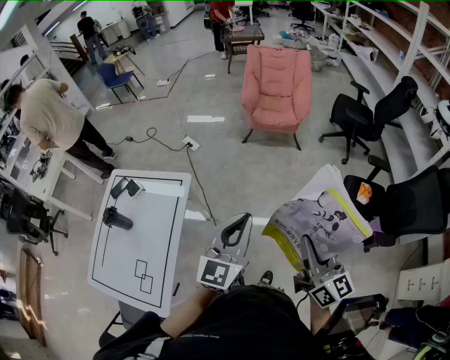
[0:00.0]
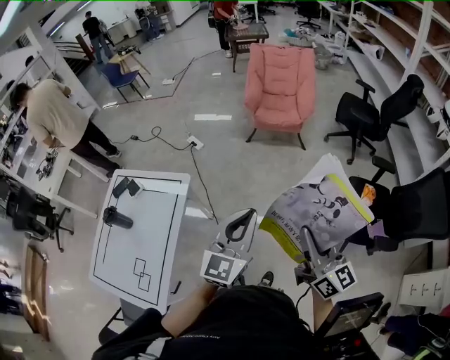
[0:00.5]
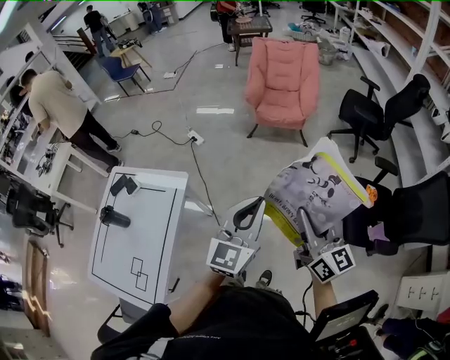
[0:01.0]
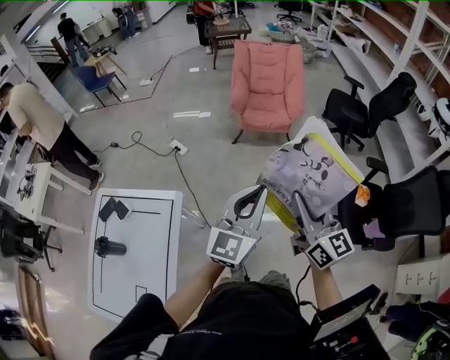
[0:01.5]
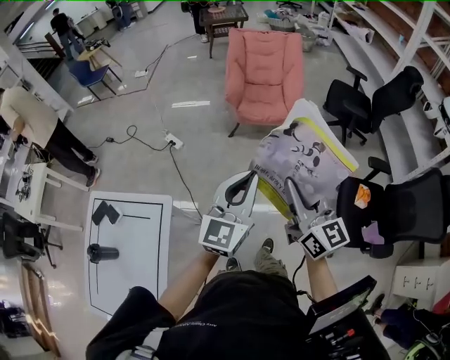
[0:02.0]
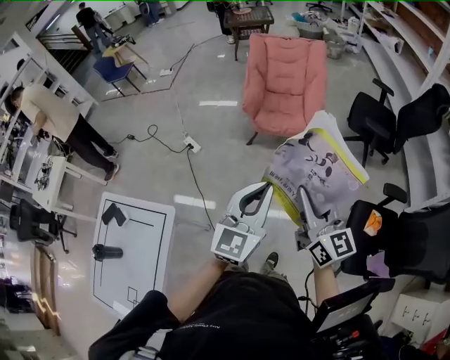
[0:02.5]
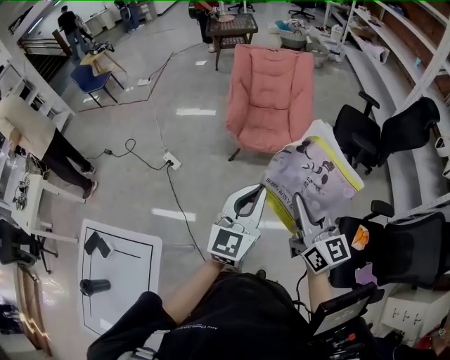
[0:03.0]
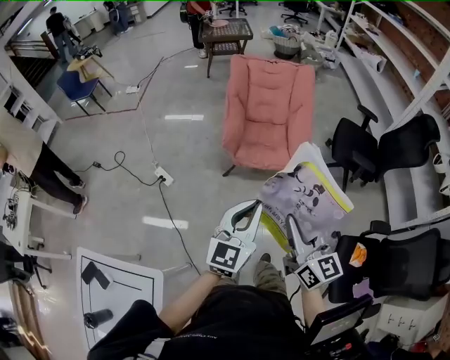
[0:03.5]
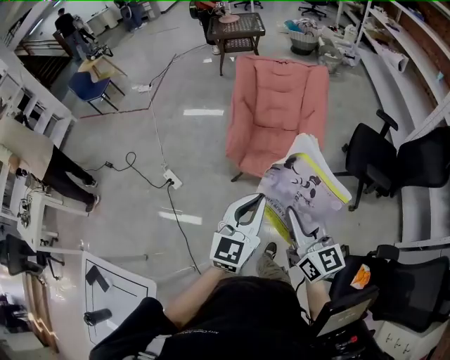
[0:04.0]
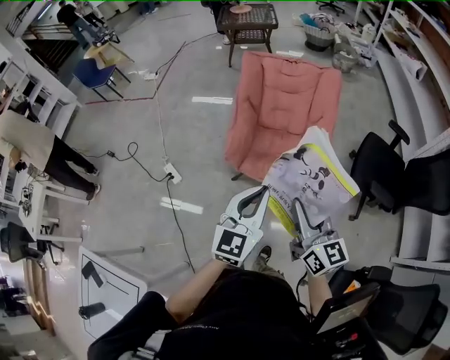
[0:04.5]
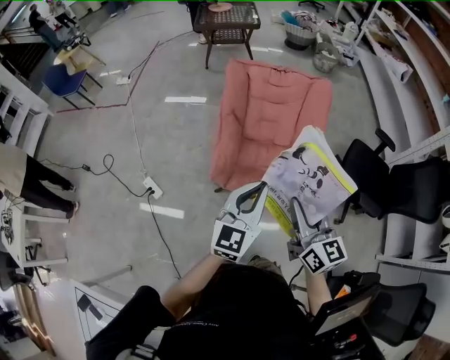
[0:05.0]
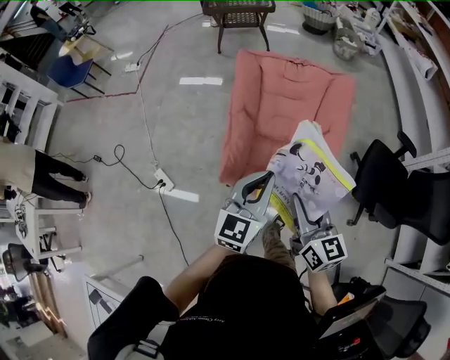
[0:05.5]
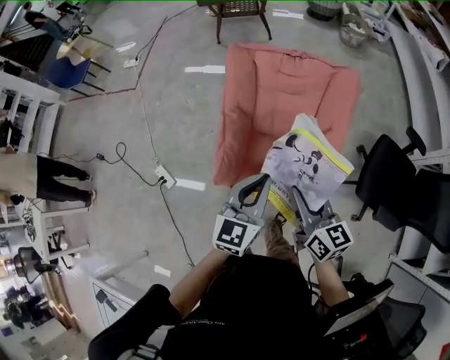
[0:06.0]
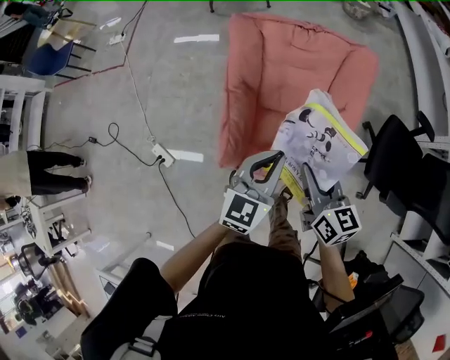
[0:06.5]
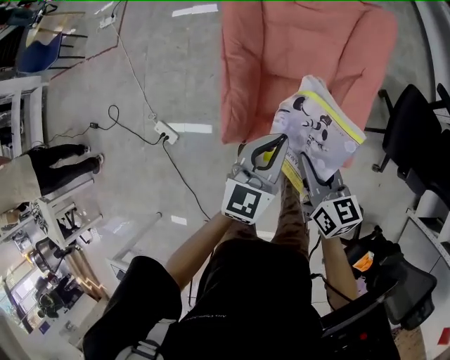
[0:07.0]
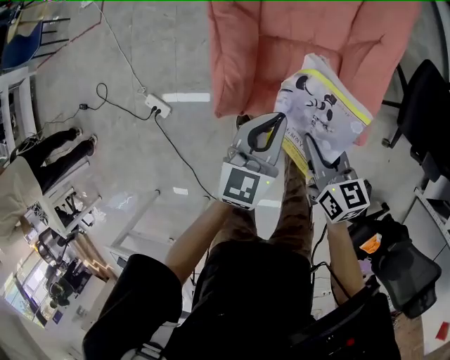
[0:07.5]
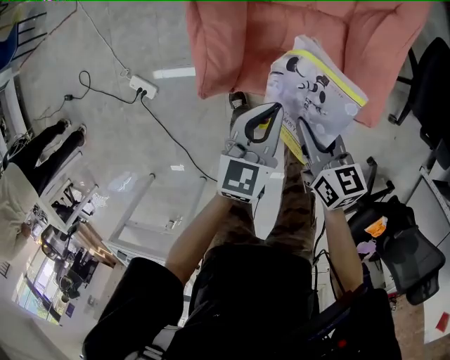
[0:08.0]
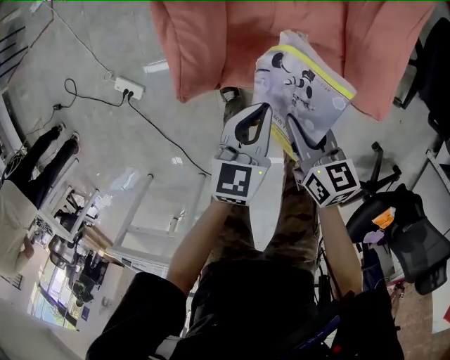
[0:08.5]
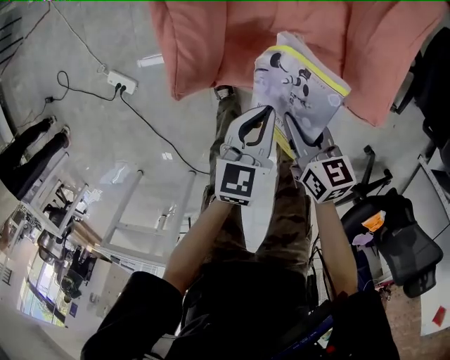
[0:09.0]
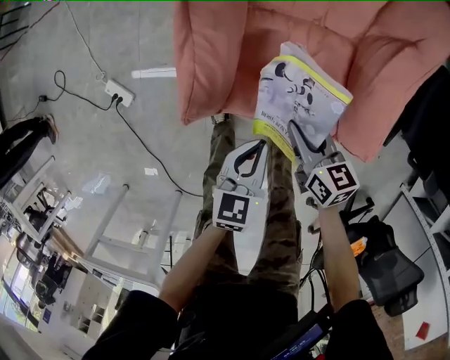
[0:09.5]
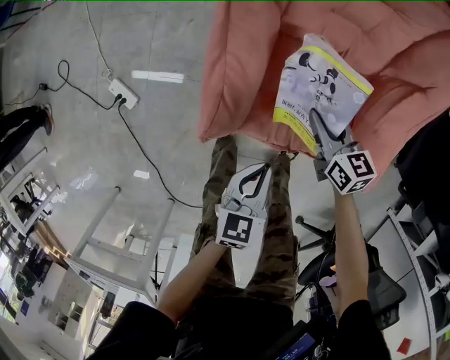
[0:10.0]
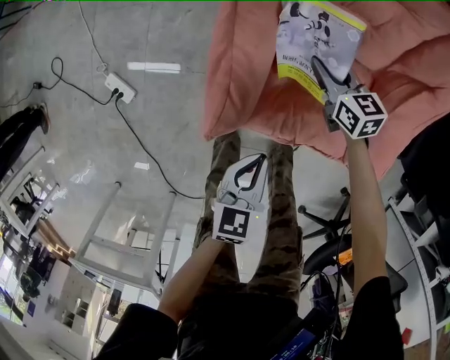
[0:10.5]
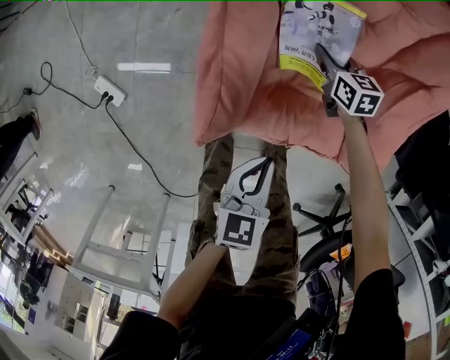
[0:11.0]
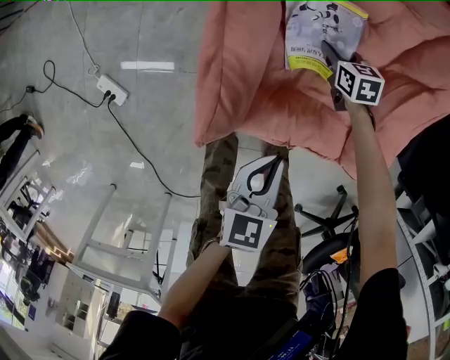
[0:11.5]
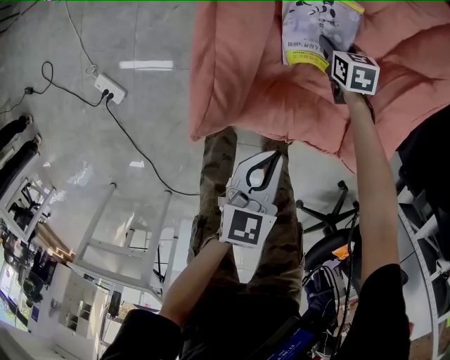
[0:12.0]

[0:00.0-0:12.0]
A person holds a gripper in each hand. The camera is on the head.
0:00.0 to 0:02.0: The two grippers go approximately 30 cm forward.
0:02.0 to 0:04.0: The pair of grippers is taken forward, approximately 40 cm.
0:04.0 to 0:06.0: The two grippers travel together, forward, some 40 cm.
0:06.0 to 0:08.0: Both grippers travel together downward, approximately 30 cm. The left gripper turns by some 20 degrees, while the right gripper rotates about 20 degrees.
0:08.0 to 0:10.0: The right gripper moves forward and downward, approximately 20 cm. Meanwhile the left gripper moves downward and to the left, some 15 cm.
0:10.0 to 0:12.0: The right gripper shifts some 20 cm forward and downward, swivels about 30 degrees, and opens up.

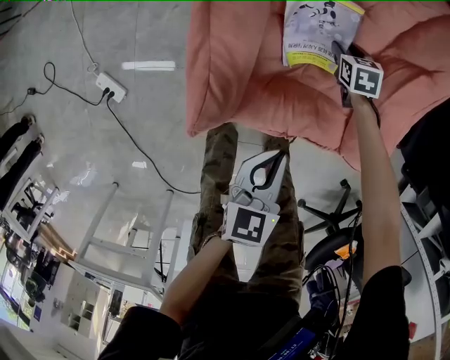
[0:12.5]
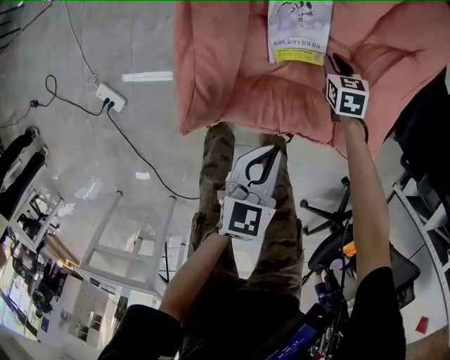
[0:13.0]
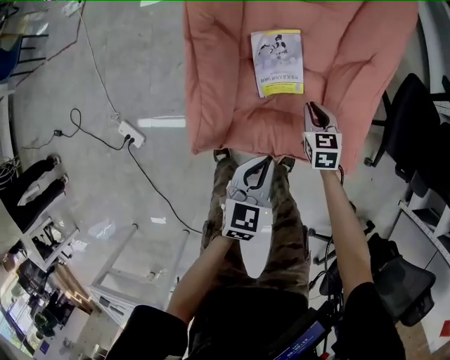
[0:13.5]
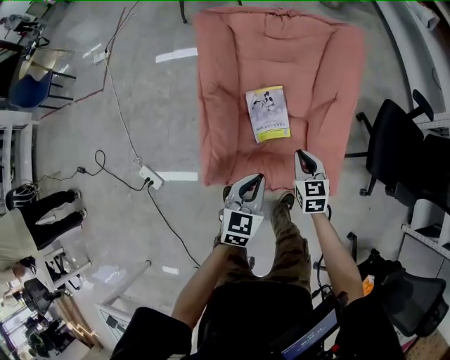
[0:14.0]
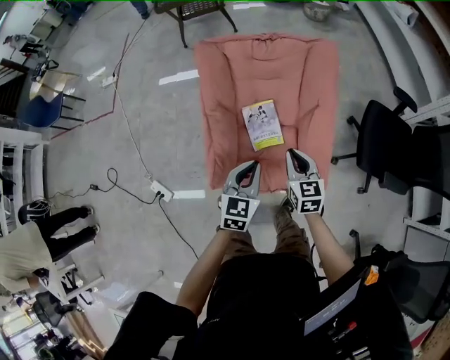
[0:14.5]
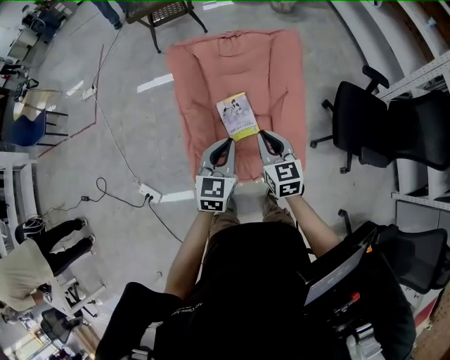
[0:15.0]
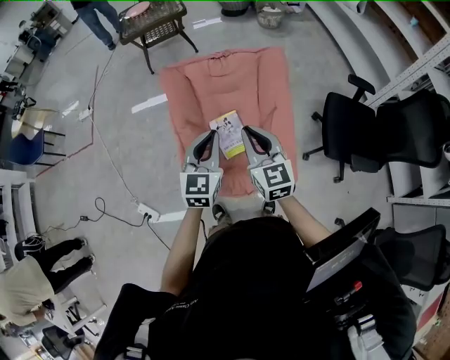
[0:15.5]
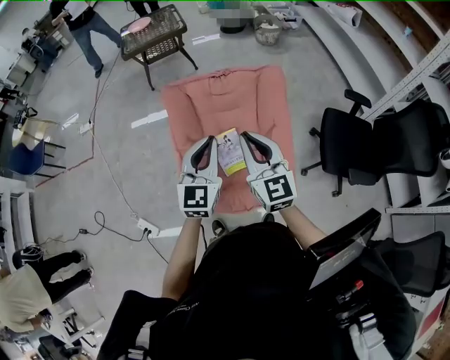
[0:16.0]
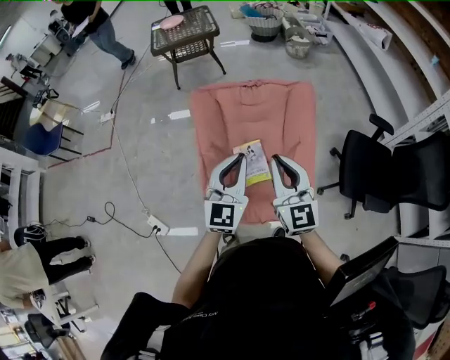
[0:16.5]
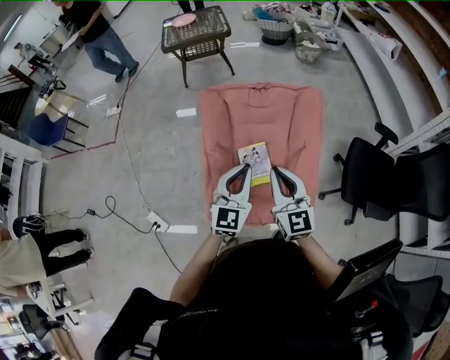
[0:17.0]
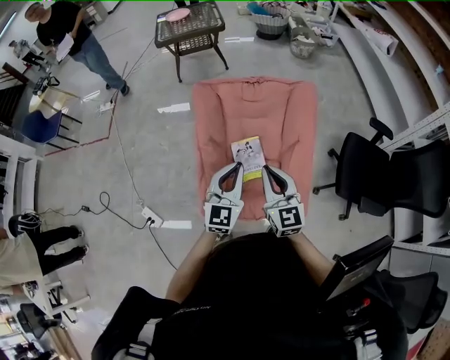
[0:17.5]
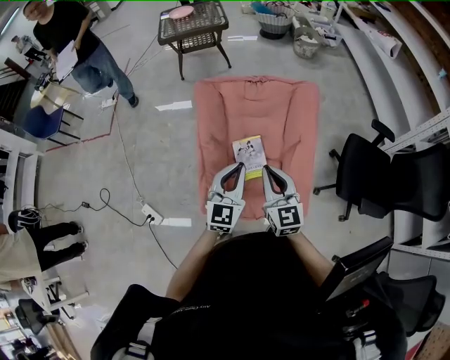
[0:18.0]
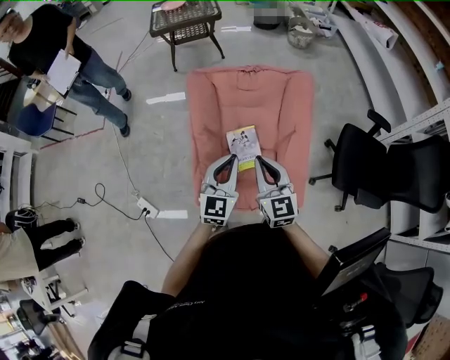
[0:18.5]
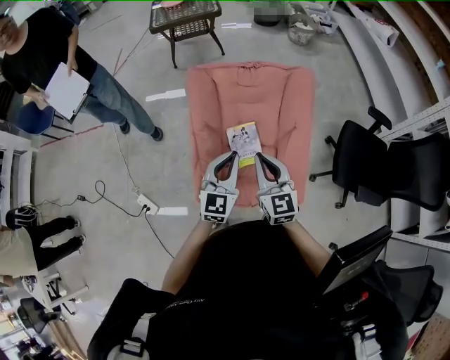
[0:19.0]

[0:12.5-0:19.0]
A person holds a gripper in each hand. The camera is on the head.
0:12.5 to 0:14.5: The right gripper heads upward and backward, covering about 50 cm, points its fingers approximately 30 degrees further upward, and closes its fingers, while the left gripper is displaced upward by approximately 30 cm, and rotates some 30 degrees.
0:14.5 to 0:17.0: The right gripper goes approximately 20 cm upward, and turns by some 30 degrees. The left gripper travels upward and forward by about 15 cm, and turns by approximately 20 degrees.
0:17.0 to 0:19.0: The grippers move only a little.

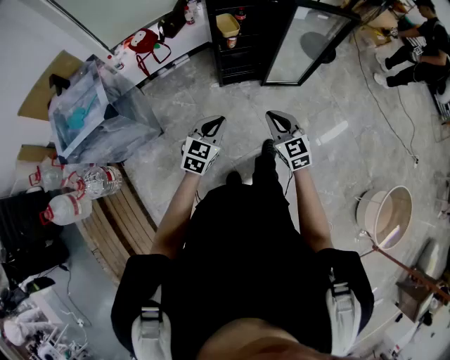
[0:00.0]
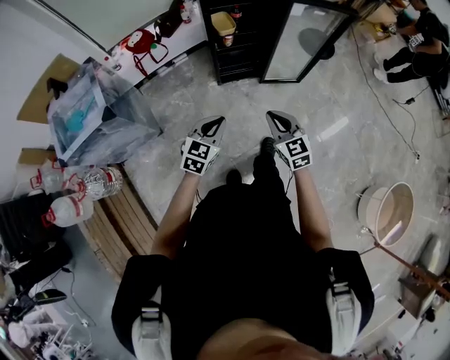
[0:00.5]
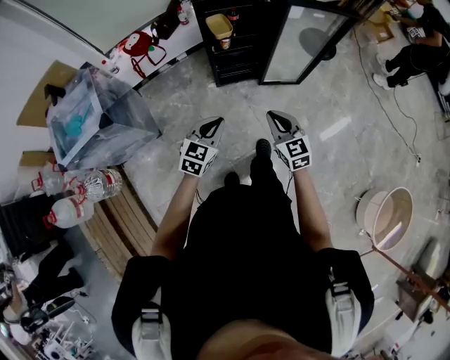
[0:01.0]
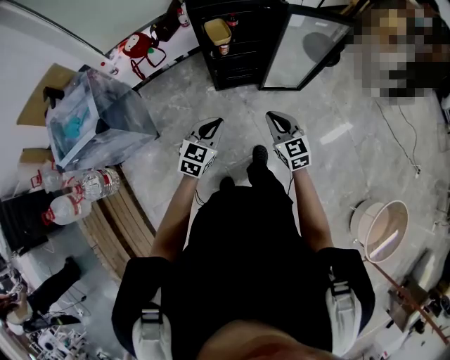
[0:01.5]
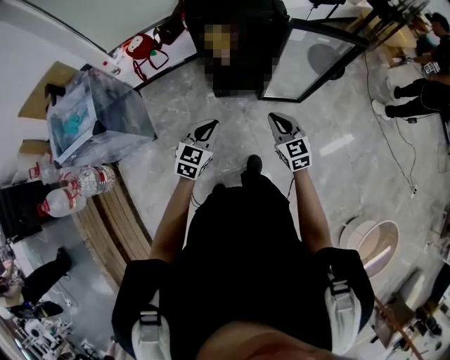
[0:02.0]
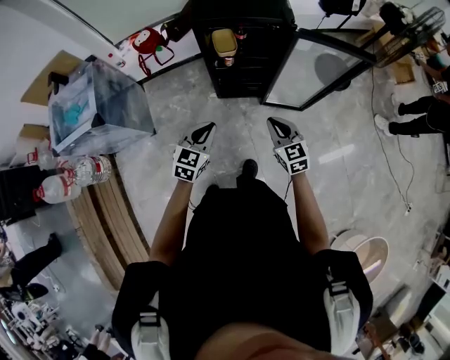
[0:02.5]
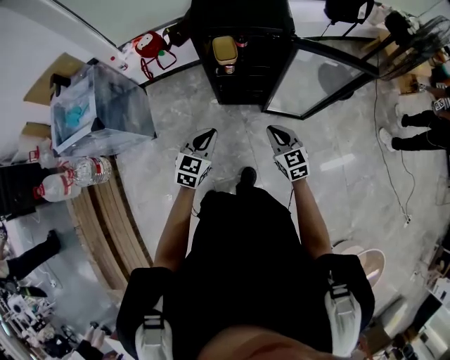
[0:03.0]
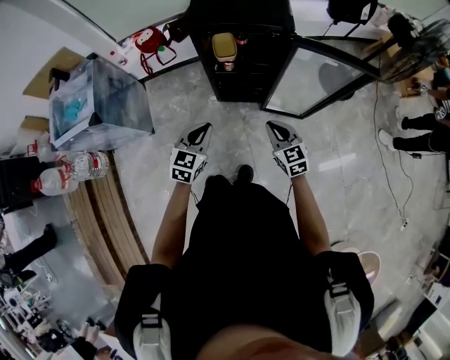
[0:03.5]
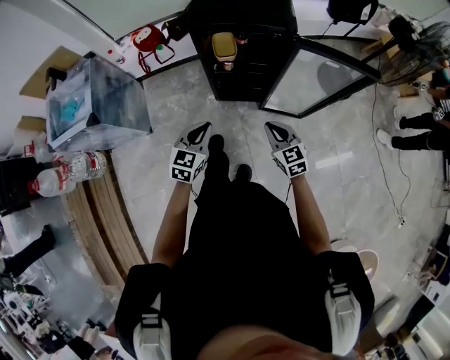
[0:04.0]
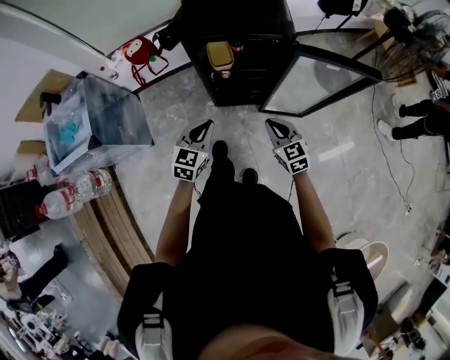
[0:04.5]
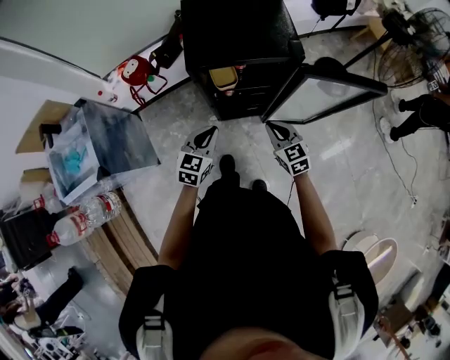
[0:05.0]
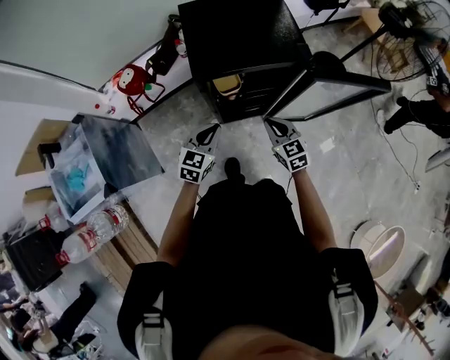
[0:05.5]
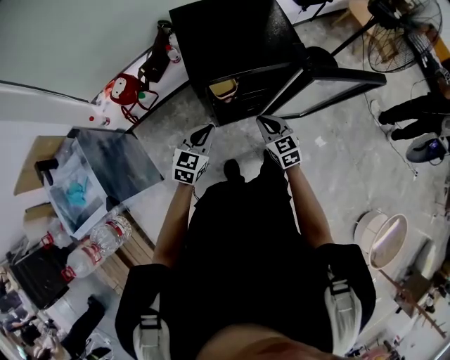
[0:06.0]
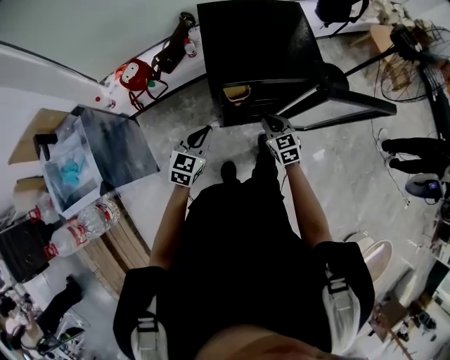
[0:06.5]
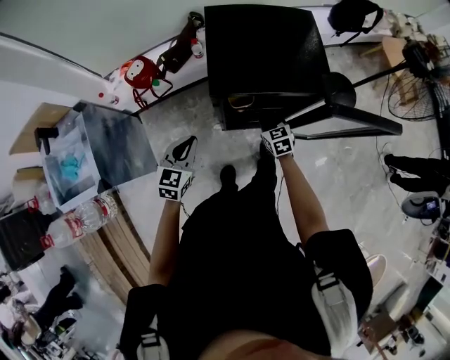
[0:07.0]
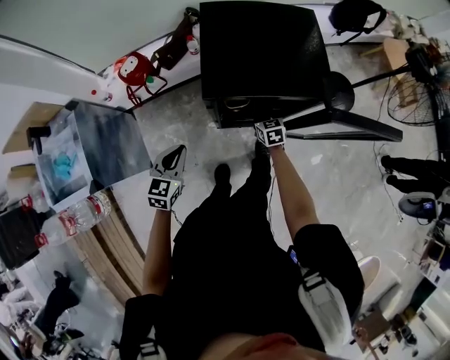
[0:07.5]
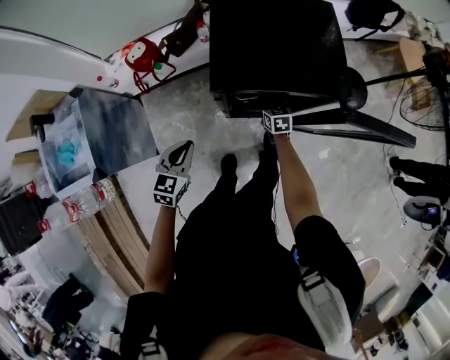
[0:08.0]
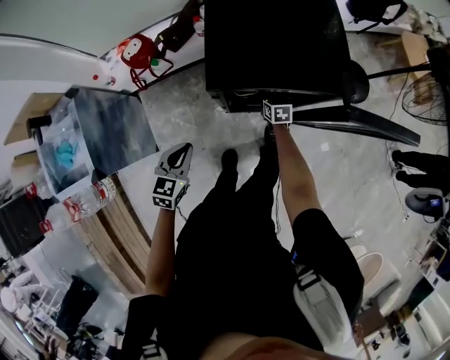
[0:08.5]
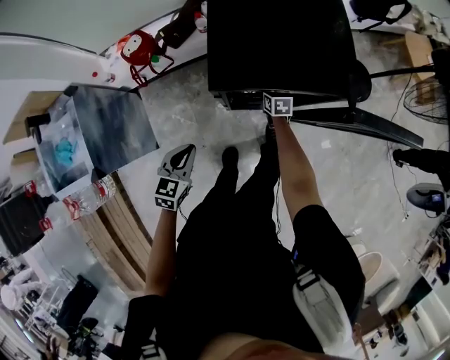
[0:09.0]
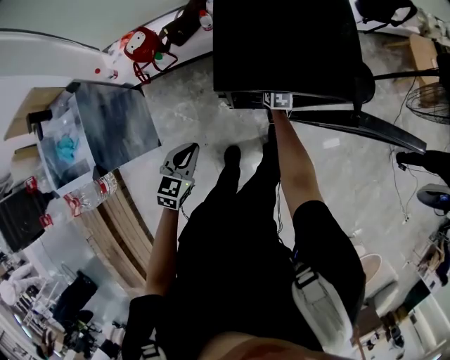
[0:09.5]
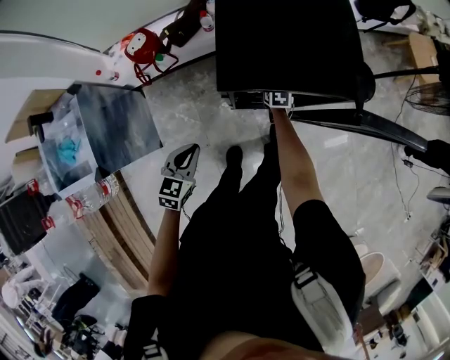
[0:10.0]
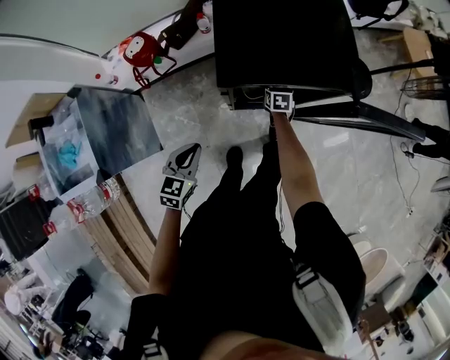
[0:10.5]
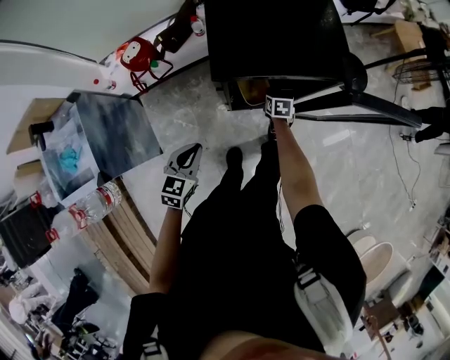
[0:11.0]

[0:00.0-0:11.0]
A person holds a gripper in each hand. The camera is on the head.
0:00.0 to 0:02.0: The grippers both shift forward and to the right by roughly 20 cm.
0:02.0 to 0:03.5: The grippers both shift forward by some 5 cm.
0:03.5 to 0:05.5: The right gripper is displaced forward and to the left by roughly 25 cm, while the left gripper is displaced forward by some 25 cm.
0:05.5 to 0:07.5: The left gripper is displaced to the left by some 10 cm, while the right gripper is displaced forward and downward by some 20 cm.
0:07.5 to 0:09.0: The left gripper ends up some 5 cm from where it was; the right gripper moves forward and downward, roughly 10 cm.
0:09.0 to 0:11.0: The right gripper heads backward, covering about 5 cm.
